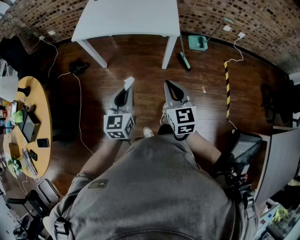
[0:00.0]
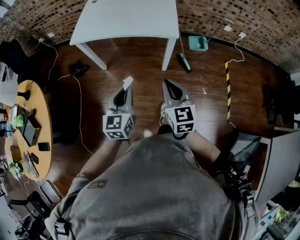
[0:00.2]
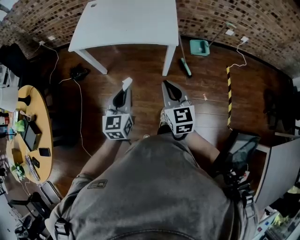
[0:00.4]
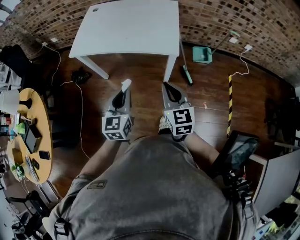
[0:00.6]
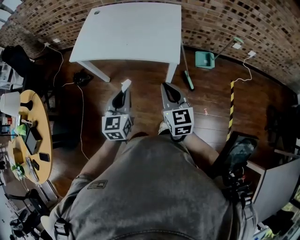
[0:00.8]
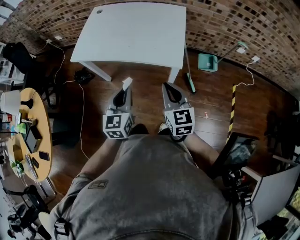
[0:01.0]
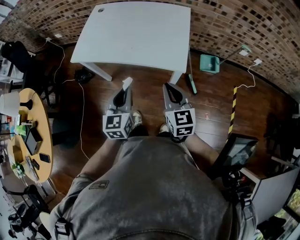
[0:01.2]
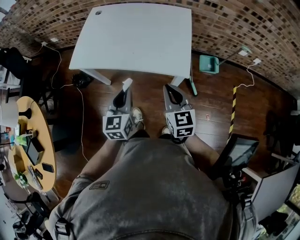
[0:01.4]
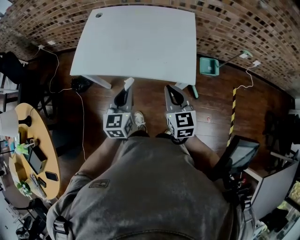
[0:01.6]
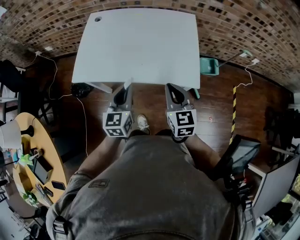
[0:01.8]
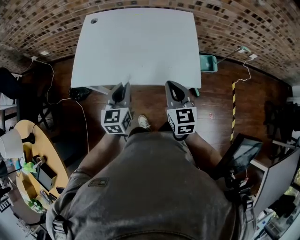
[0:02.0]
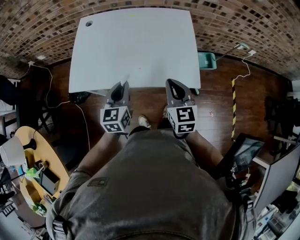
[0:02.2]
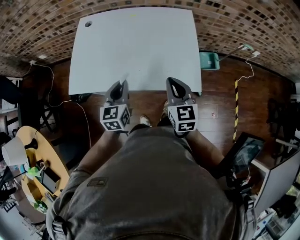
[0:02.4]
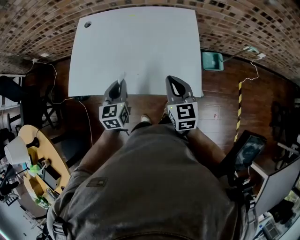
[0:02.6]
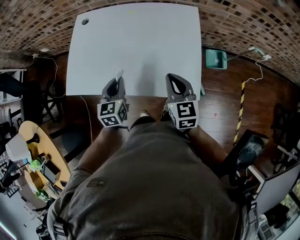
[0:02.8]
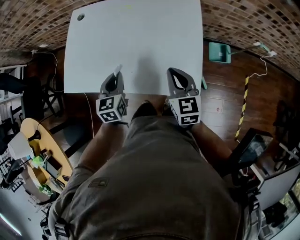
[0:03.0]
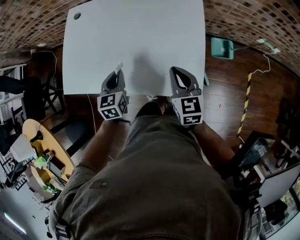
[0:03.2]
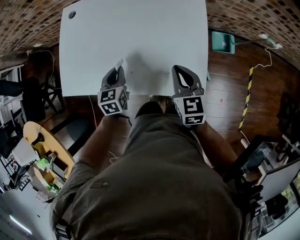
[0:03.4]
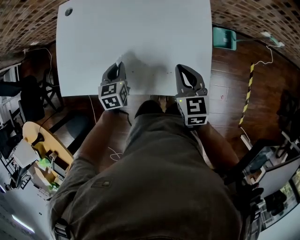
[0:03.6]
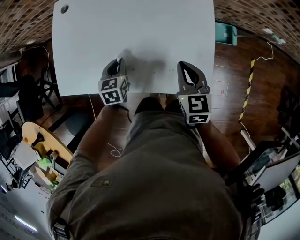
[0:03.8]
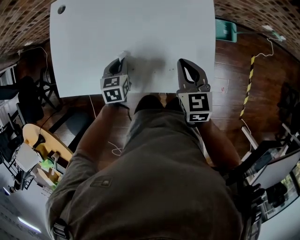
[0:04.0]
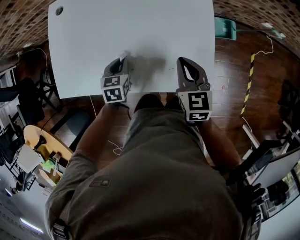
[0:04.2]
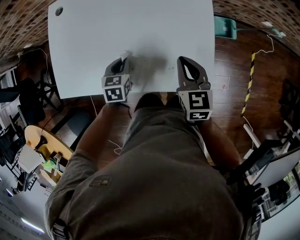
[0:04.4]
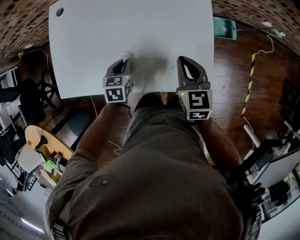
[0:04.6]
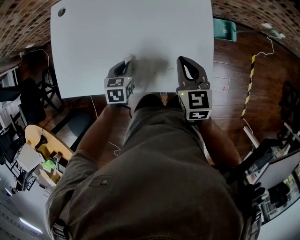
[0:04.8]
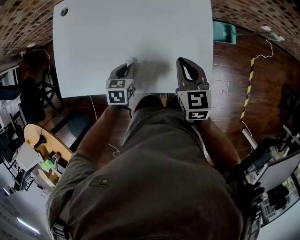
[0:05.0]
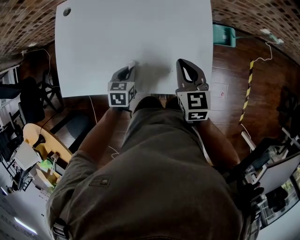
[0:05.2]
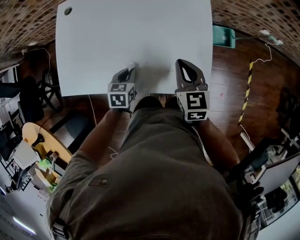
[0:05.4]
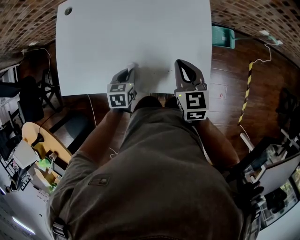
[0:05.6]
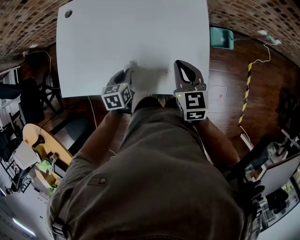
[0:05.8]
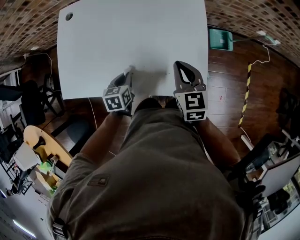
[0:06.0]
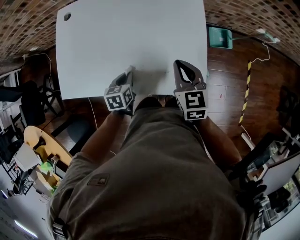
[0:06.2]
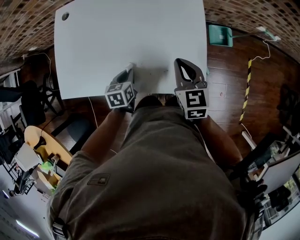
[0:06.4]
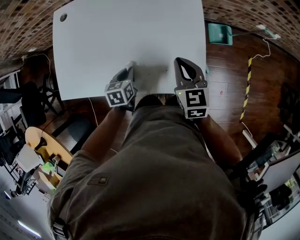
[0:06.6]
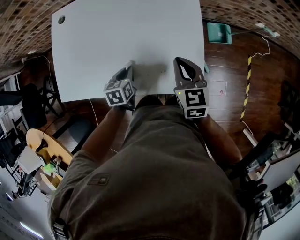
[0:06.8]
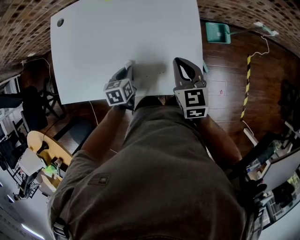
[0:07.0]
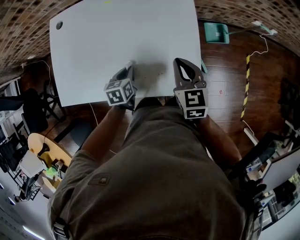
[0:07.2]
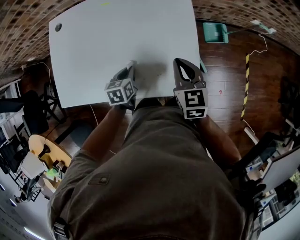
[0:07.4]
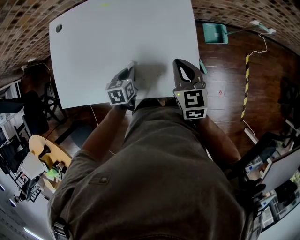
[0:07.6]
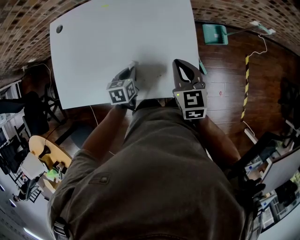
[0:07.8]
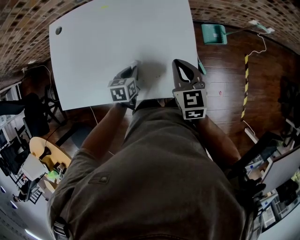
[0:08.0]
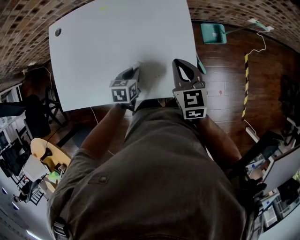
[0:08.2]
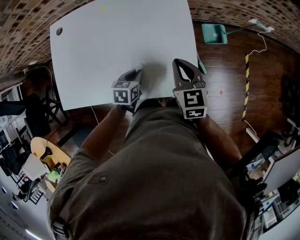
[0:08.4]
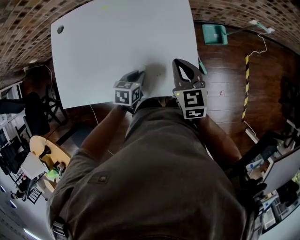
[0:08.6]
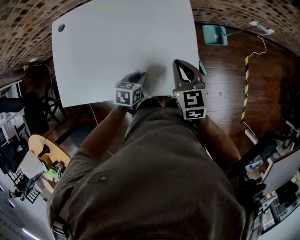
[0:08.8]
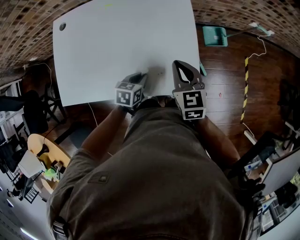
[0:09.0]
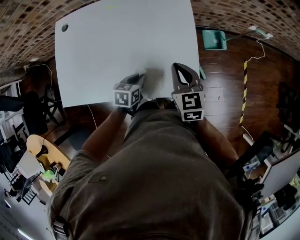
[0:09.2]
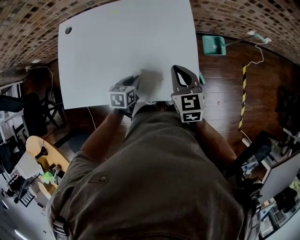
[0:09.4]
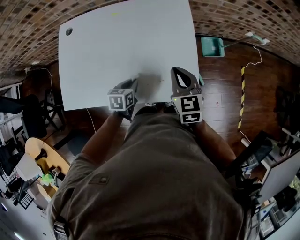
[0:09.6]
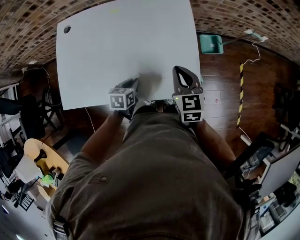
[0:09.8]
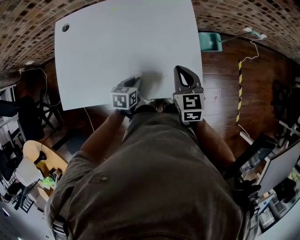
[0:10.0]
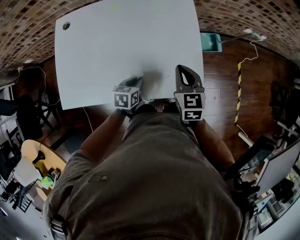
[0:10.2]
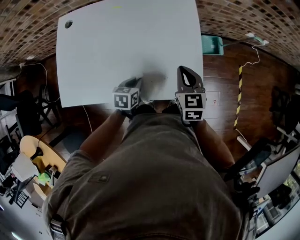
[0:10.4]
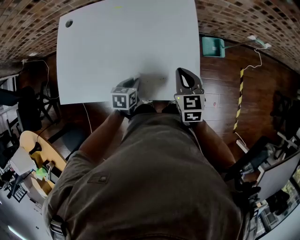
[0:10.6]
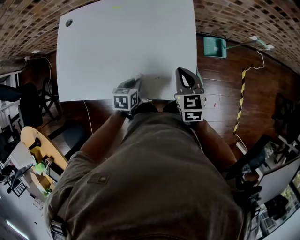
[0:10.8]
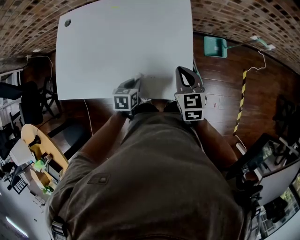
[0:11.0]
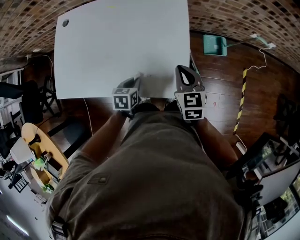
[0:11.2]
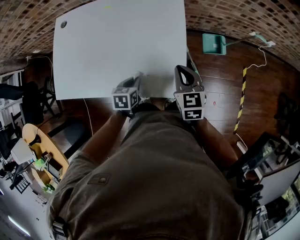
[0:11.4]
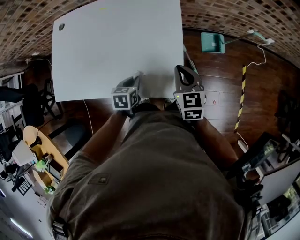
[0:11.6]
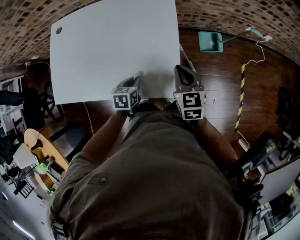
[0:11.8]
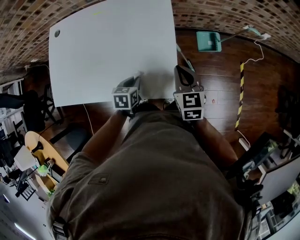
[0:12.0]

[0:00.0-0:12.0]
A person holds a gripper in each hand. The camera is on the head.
0:00.0 to 0:01.6: Both grippers travel together forward, roughly 35 cm.
0:01.6 to 0:03.0: The grippers both shift forward by roughly 20 cm.
0:03.0 to 0:04.4: The right gripper travels downward by approximately 5 cm; the left gripper heads downward, covering some 15 cm, and rotates approximately 30 degrees.
0:04.4 to 0:06.0: The grippers stay close to where they were, moving slightly.
0:06.0 to 0:07.6: The left gripper heads to the right, covering roughly 5 cm.
0:07.6 to 0:09.0: The left gripper is displaced to the right by about 5 cm.
0:09.0 to 0:10.4: The left gripper shifts approximately 5 cm to the left.
0:10.4 to 0:12.0: The two grippers go roughly 10 cm to the right.

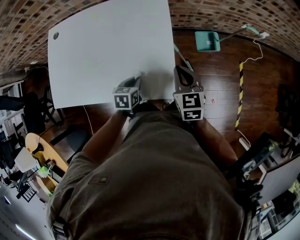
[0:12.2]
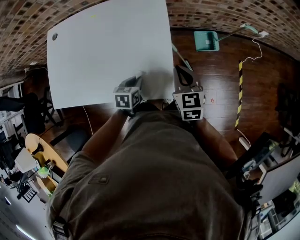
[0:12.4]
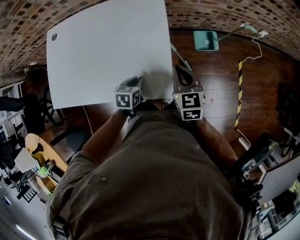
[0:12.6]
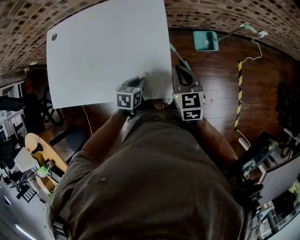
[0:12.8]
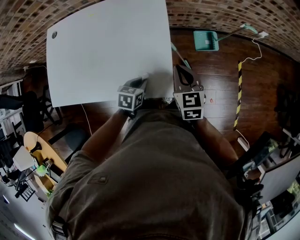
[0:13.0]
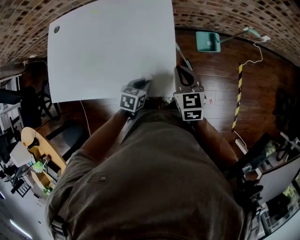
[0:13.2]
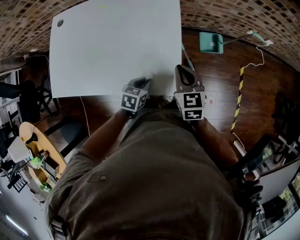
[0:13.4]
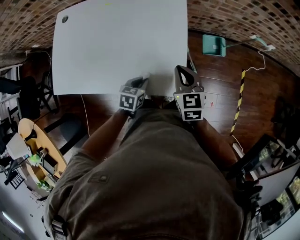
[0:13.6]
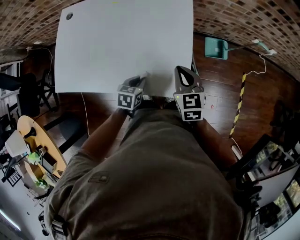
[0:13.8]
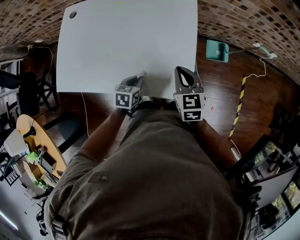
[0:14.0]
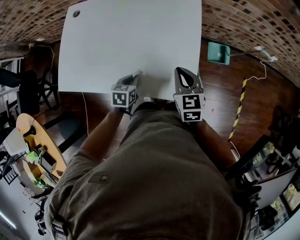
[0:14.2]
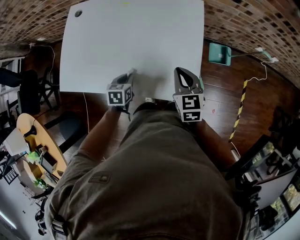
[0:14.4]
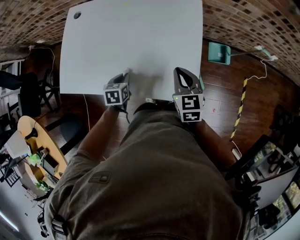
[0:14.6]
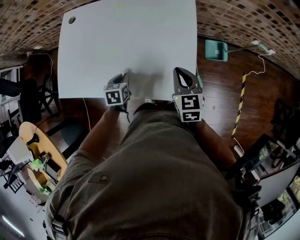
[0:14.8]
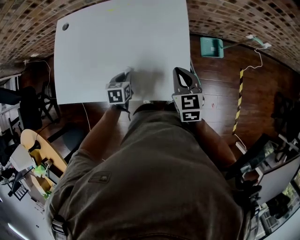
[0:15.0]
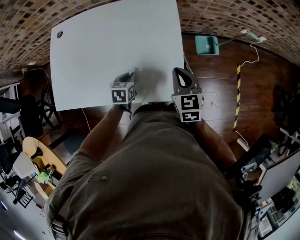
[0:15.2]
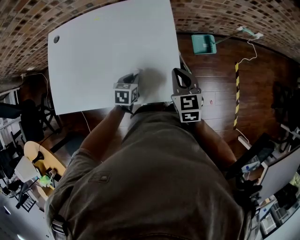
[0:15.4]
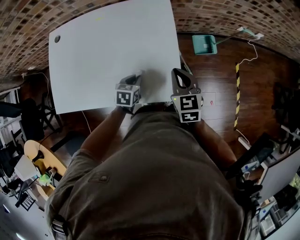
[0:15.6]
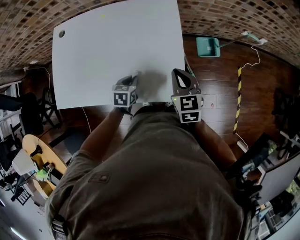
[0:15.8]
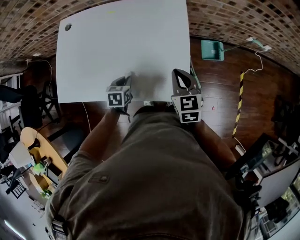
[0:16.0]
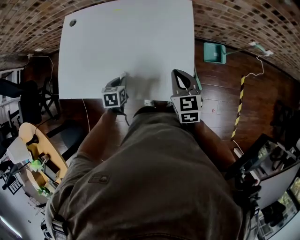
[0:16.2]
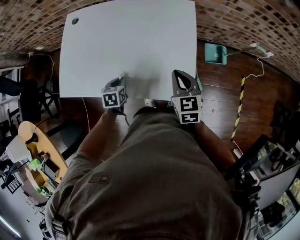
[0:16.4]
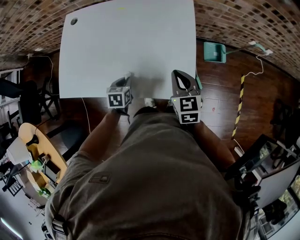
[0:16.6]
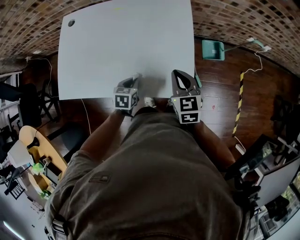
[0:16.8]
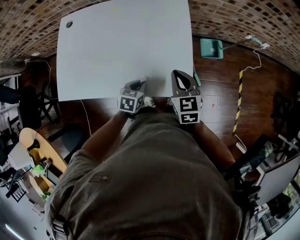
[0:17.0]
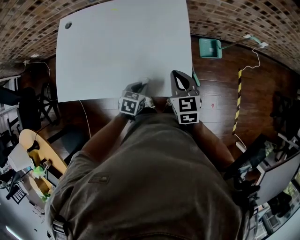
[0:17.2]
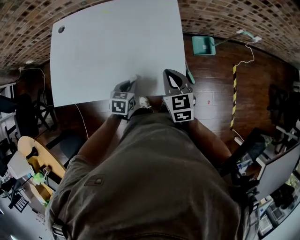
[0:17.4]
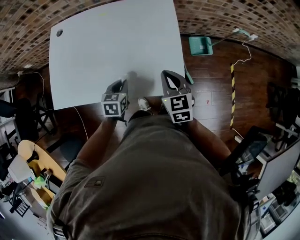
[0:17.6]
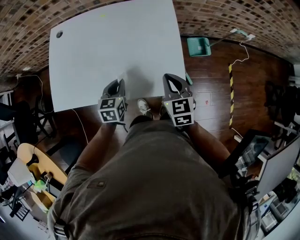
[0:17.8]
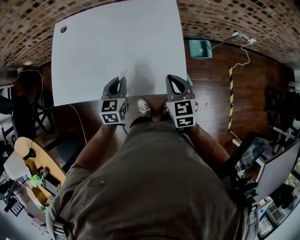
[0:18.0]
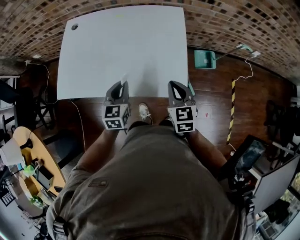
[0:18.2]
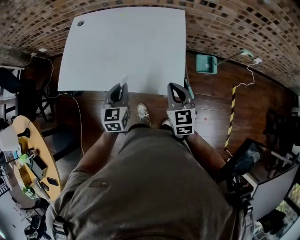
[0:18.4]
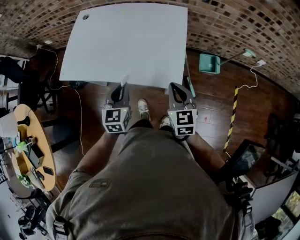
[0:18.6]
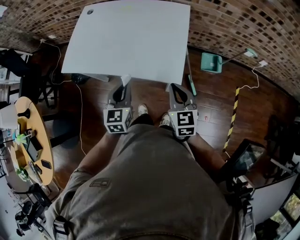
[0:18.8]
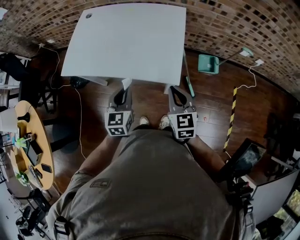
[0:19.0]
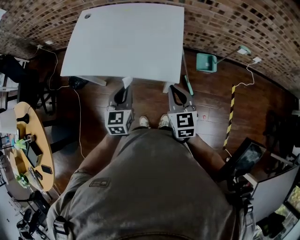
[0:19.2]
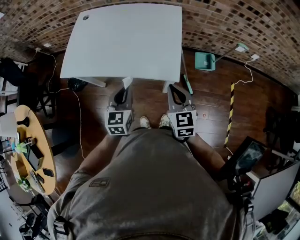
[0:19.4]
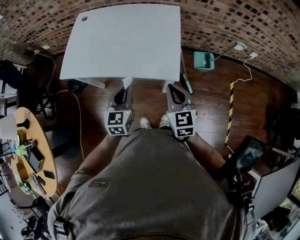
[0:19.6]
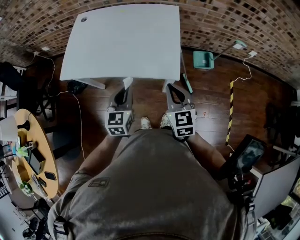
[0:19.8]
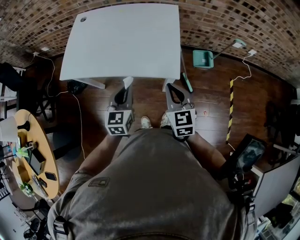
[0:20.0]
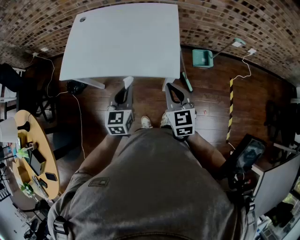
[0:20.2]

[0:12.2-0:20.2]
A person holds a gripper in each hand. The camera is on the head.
0:12.2 to 0:13.8: The left gripper ends up some 5 cm from where it was. The right gripper is displaced to the left by approximately 5 cm.
0:13.8 to 0:15.4: The left gripper moves forward, some 5 cm, and moves roughly 15 cm to the left and comes back.
0:15.4 to 0:17.0: The right gripper moves to the left, about 5 cm; the left gripper travels backward by approximately 5 cm, and goes to the left and returns, roughly 15 cm each way.
0:17.0 to 0:18.6: The left gripper shifts about 20 cm upward and backward, and tips its fingers upward by some 30 degrees. Meanwhile the right gripper travels backward by about 10 cm.
0:18.6 to 0:20.2: Both grippers travel together backward, some 5 cm.

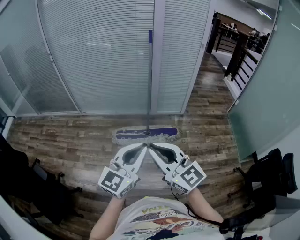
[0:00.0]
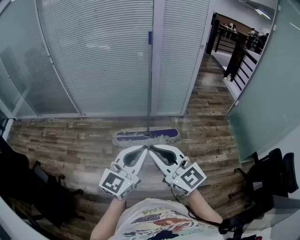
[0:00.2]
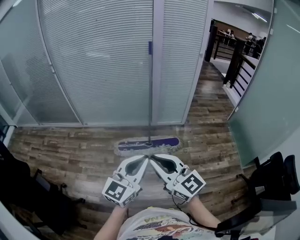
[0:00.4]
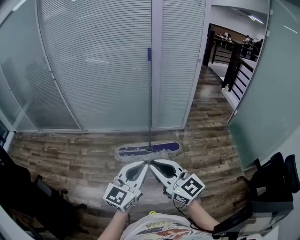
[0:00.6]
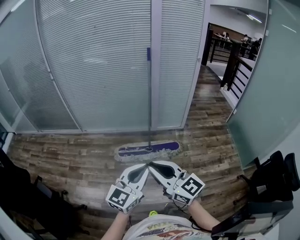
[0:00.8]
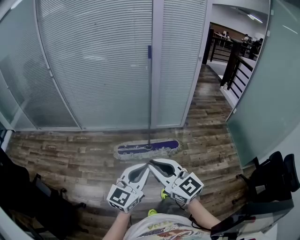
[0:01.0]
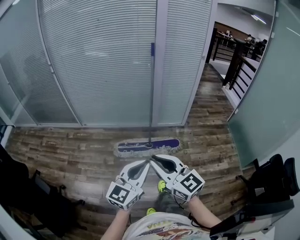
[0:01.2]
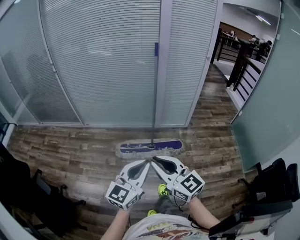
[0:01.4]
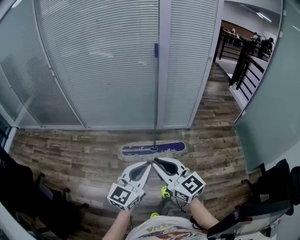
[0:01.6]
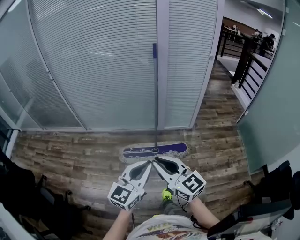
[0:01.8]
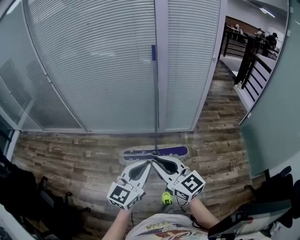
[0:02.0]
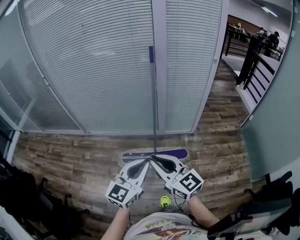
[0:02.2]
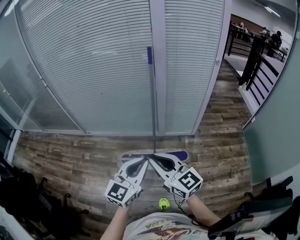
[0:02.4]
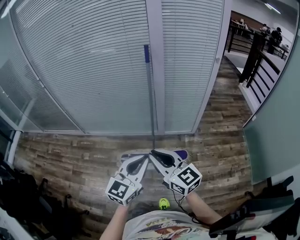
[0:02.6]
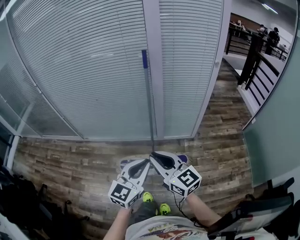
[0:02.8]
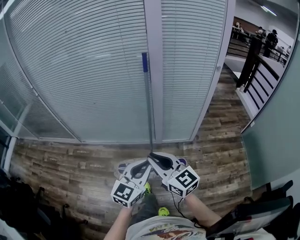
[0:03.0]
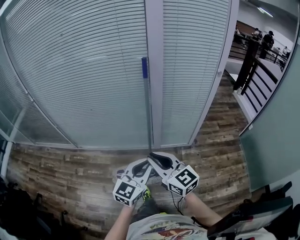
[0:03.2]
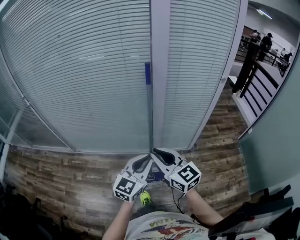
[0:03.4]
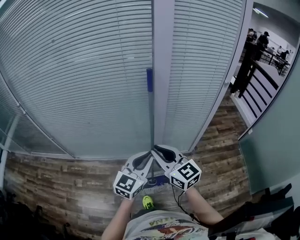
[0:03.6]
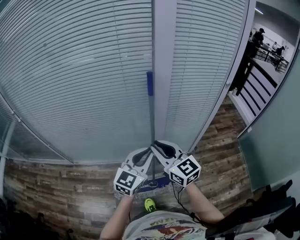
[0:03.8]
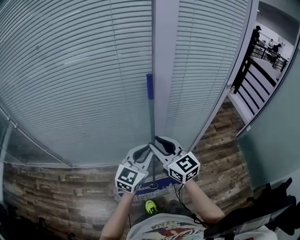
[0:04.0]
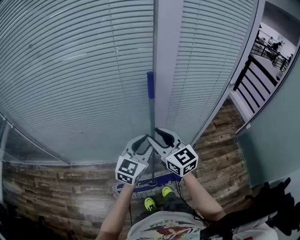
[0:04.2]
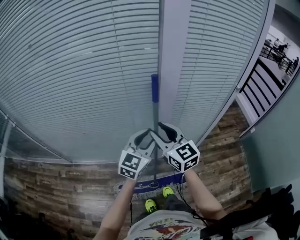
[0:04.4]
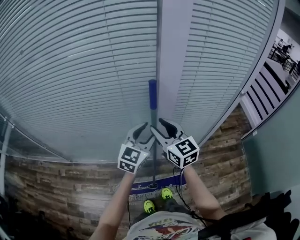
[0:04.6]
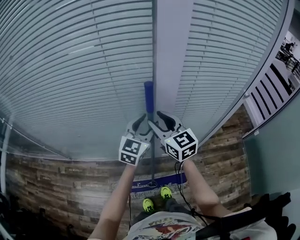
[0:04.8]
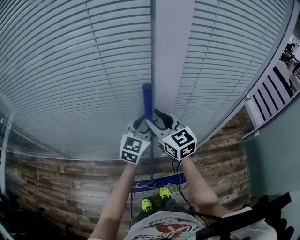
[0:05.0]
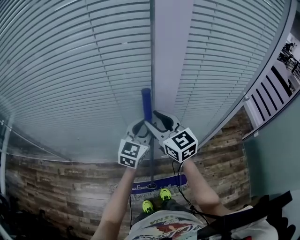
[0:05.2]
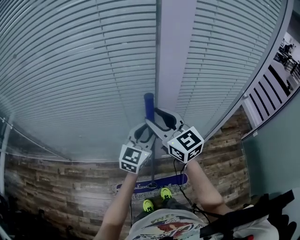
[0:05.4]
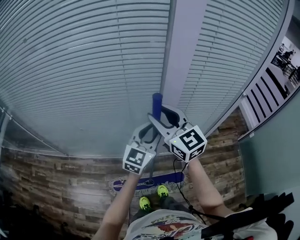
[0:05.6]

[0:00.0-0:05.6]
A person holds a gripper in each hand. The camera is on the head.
0:00.0 to 0:01.4: Both grippers travel together forward, roughly 5 cm.
0:01.4 to 0:02.8: Both grippers move forward and to the right, about 40 cm.
0:02.8 to 0:04.2: The two grippers travel together, forward, approximately 40 cm. The right gripper opens, while the left gripper opens its fingers.
0:04.2 to 0:05.6: The right gripper heads forward and upward, covering some 10 cm. The left gripper moves forward, some 10 cm.
